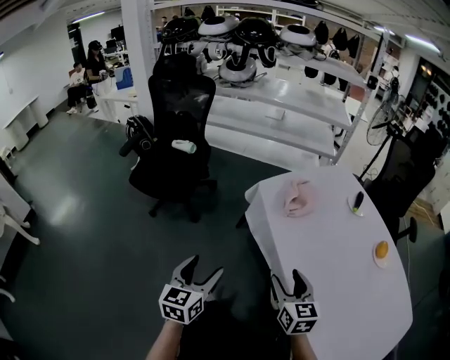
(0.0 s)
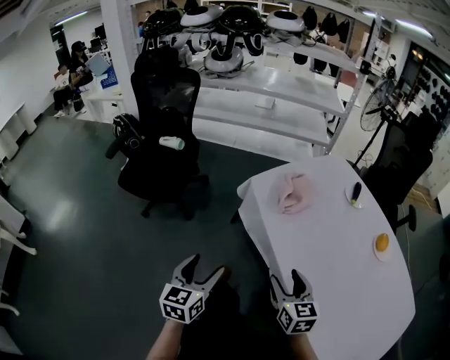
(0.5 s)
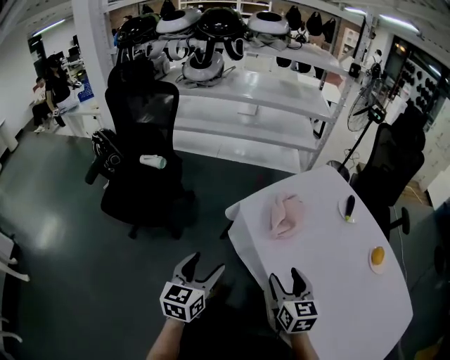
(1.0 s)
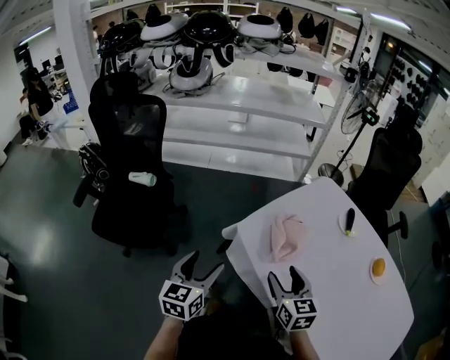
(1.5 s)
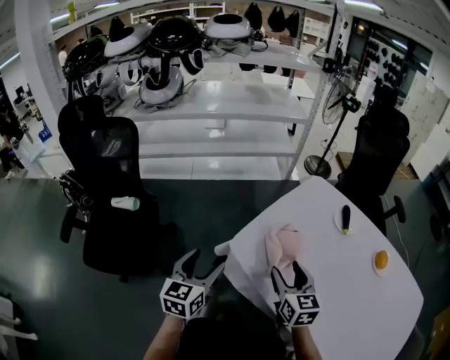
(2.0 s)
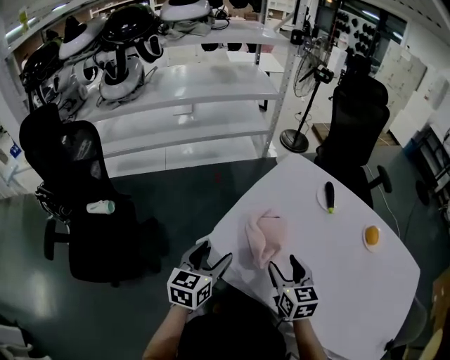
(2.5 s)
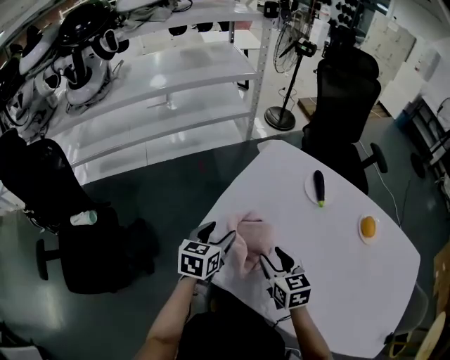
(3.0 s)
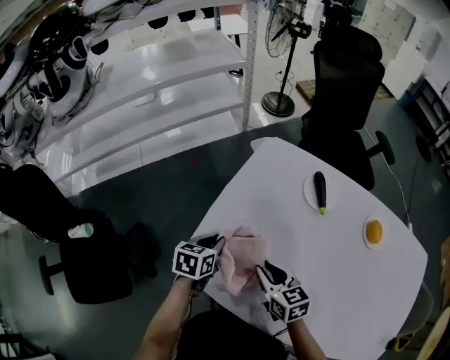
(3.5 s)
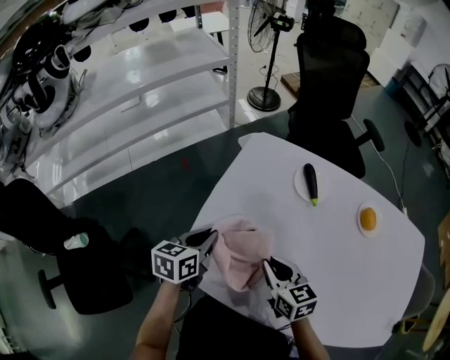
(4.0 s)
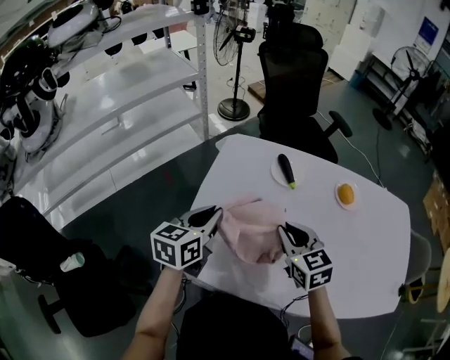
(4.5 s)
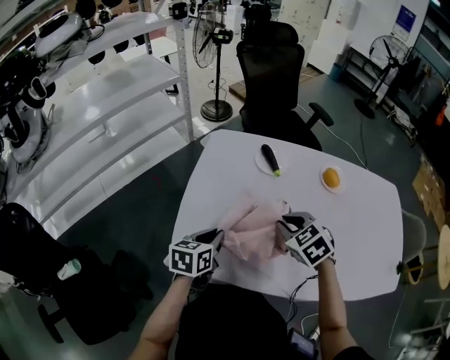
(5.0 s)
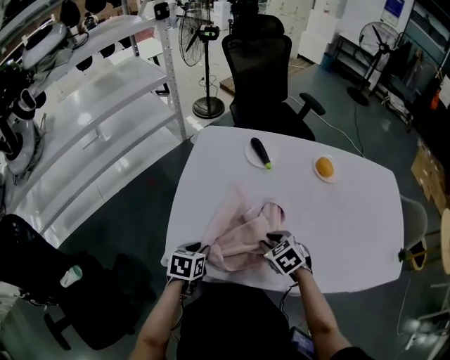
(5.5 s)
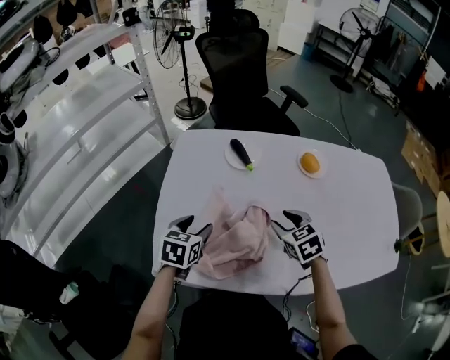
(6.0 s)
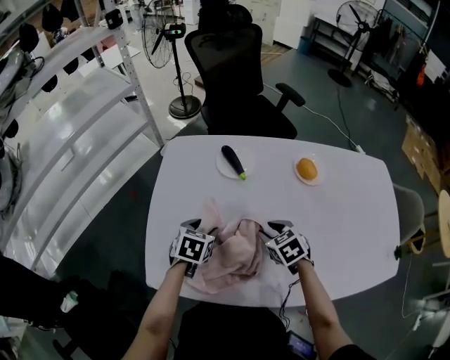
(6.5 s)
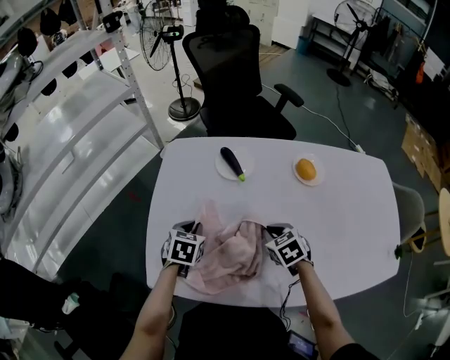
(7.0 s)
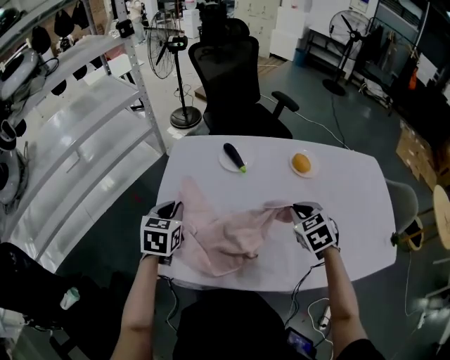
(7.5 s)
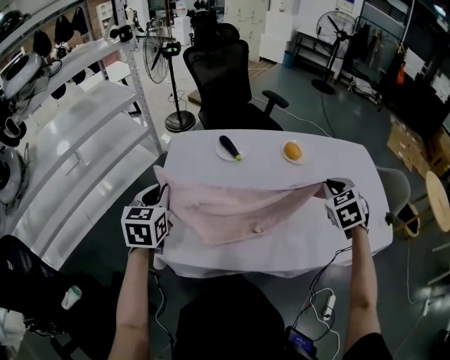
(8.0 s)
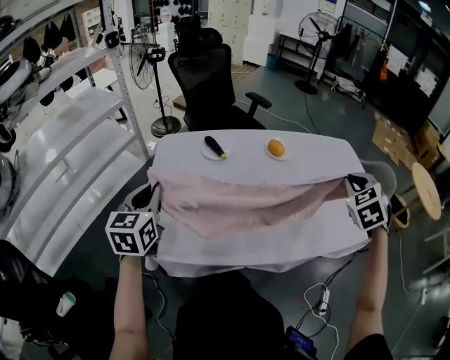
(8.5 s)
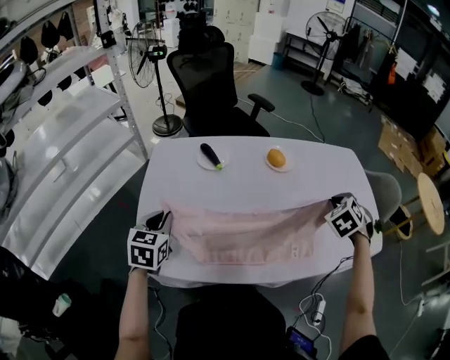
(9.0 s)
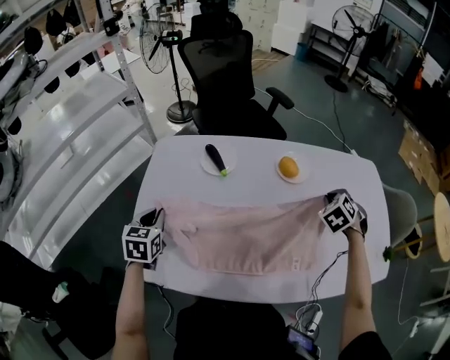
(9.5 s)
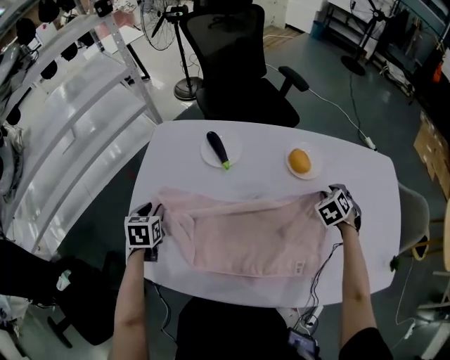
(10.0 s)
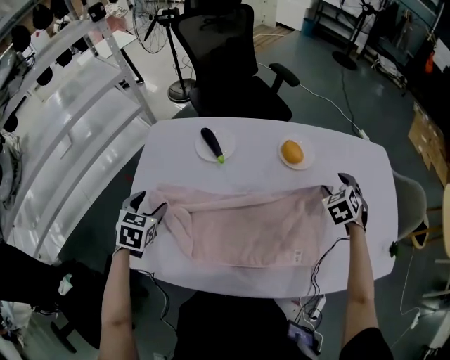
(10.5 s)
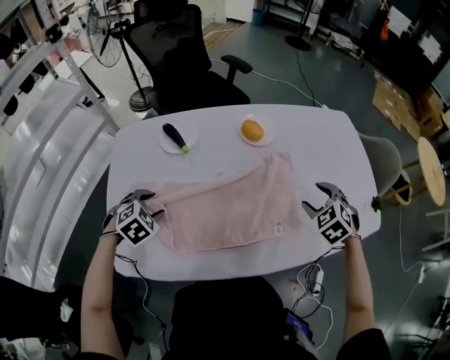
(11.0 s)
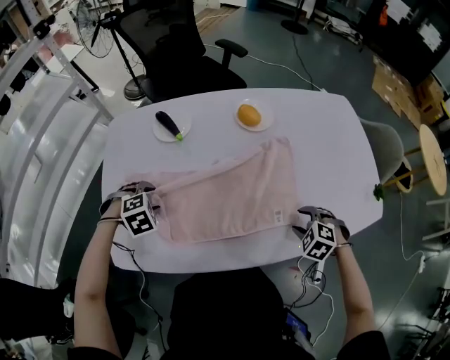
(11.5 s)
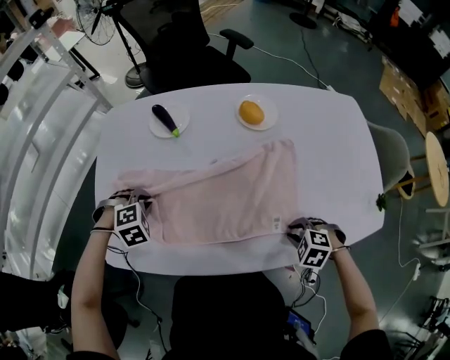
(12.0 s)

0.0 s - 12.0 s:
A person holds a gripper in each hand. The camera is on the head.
0.0 s - 2.0 s: The two grippers go approximately 35 cm forward. The right gripper swivels roughly 20 degrees, while the left gripper rotates about 20 degrees.
2.0 s - 4.0 s: The right gripper moves to the right, forward and downward, some 15 cm, and closes. Meanwhile the left gripper heads forward and to the right, covering roughly 30 cm, swivels roughly 40 degrees, and closes.
4.0 s - 6.0 s: The right gripper is displaced to the right by roughly 15 cm, swivels approximately 30 degrees, and opens its fingers. The left gripper swings up and down, some 20 cm each way, with 2 reversals, changes its angle by approximately 30 degrees, and opens its fingers.
6.0 s - 8.0 s: The right gripper shifts roughly 20 cm to the right and upward, swivels roughly 30 degrees, and closes up. Meanwhile the left gripper travels upward and to the left by some 15 cm, rotates some 20 degrees, and closes its fingers.
8.0 s - 10.0 s: The right gripper is displaced forward and downward by roughly 30 cm, and turns by roughly 20 degrees; the left gripper is displaced downward and forward by roughly 20 cm, and swivels some 30 degrees.
10.0 s - 12.0 s: The left gripper reaches some 5 cm upward, then returns, twists about 80 degrees clockwise, seen from behind, and opens, then closes once more. Meanwhile the right gripper ends up about 30 cm from where it was, rotates about 40 degrees, and opens, then closes once more.

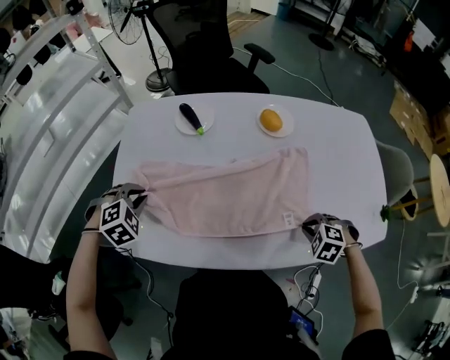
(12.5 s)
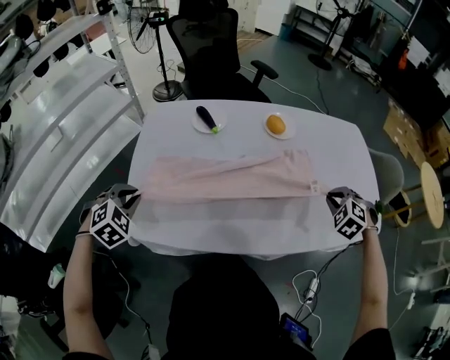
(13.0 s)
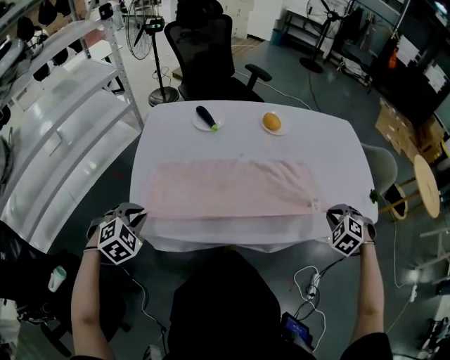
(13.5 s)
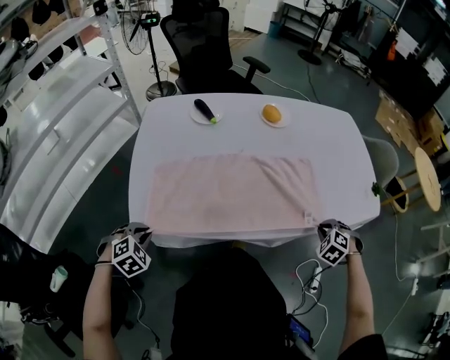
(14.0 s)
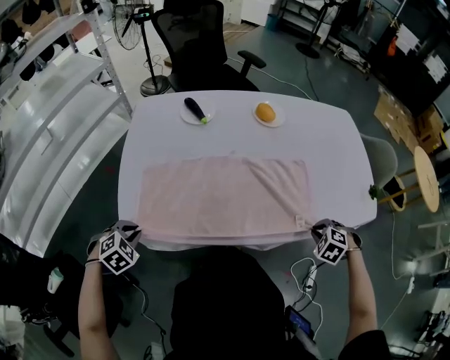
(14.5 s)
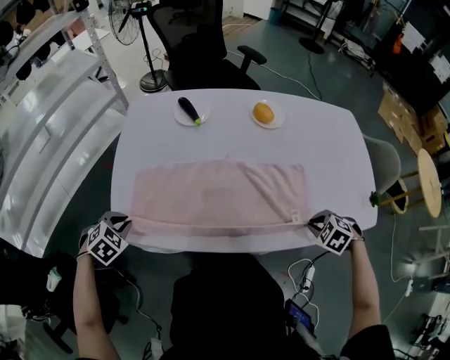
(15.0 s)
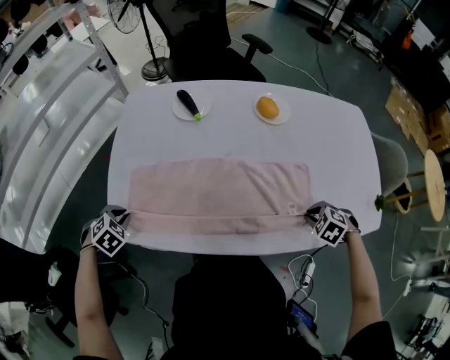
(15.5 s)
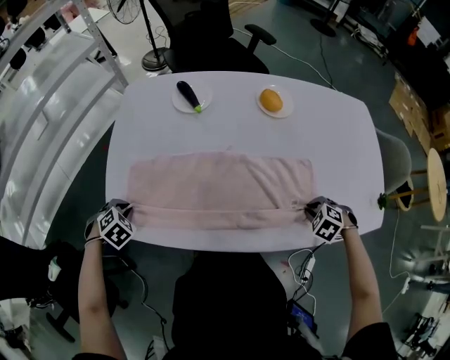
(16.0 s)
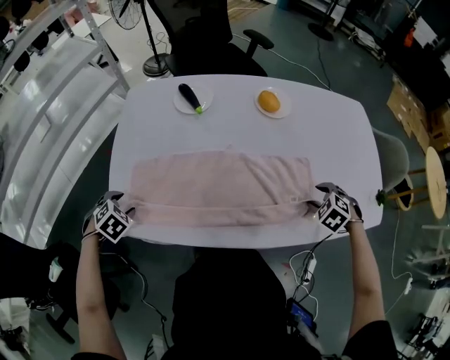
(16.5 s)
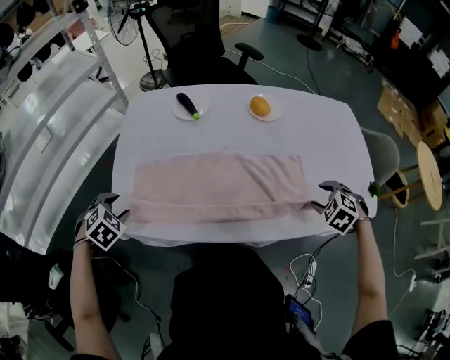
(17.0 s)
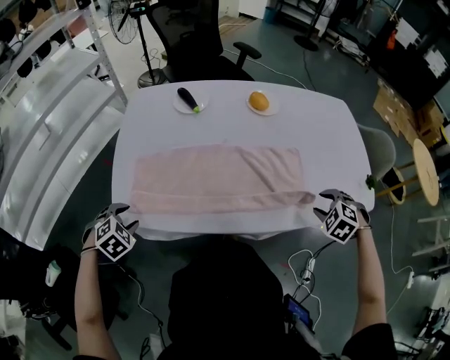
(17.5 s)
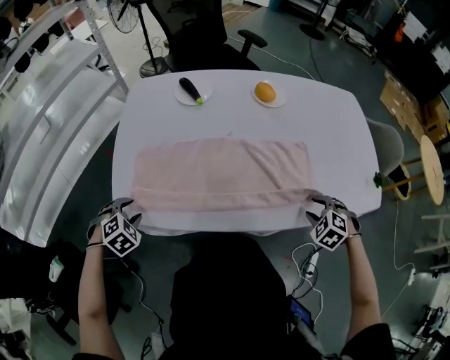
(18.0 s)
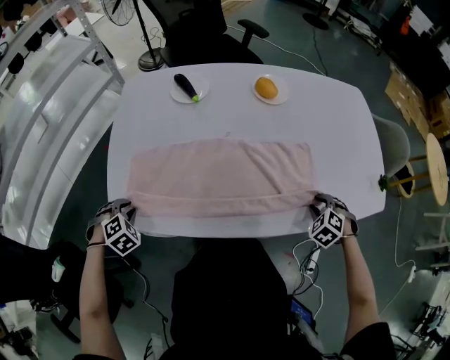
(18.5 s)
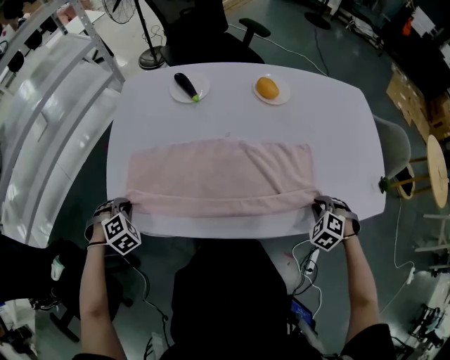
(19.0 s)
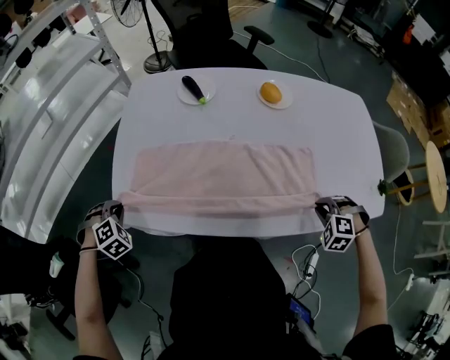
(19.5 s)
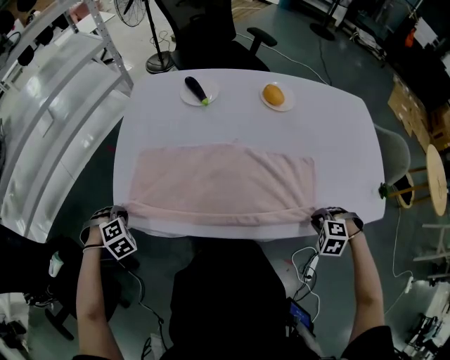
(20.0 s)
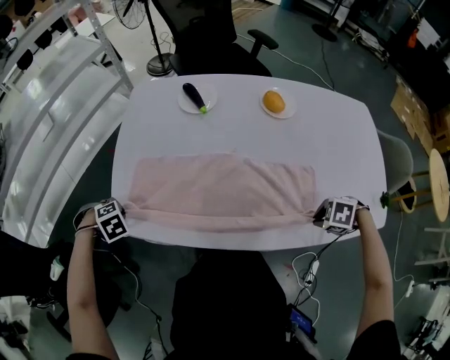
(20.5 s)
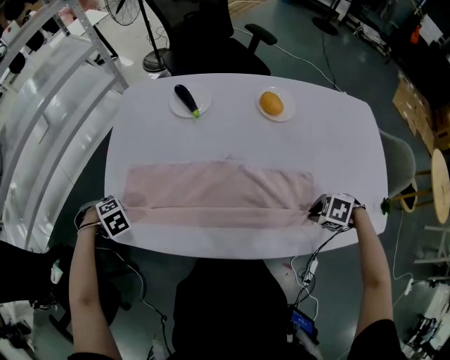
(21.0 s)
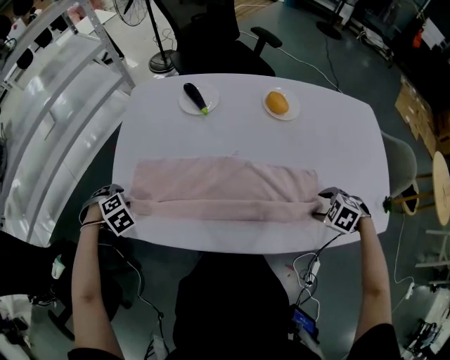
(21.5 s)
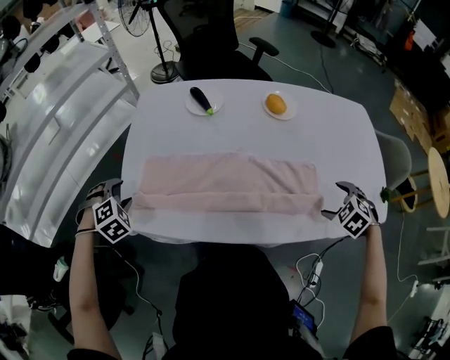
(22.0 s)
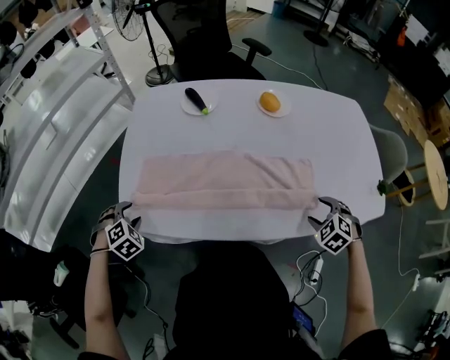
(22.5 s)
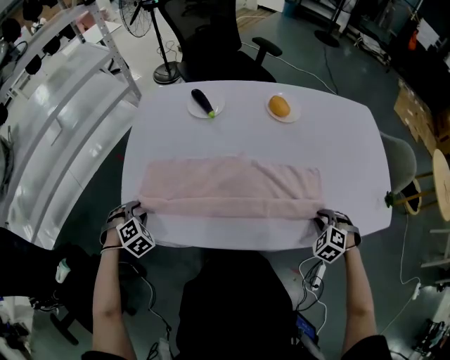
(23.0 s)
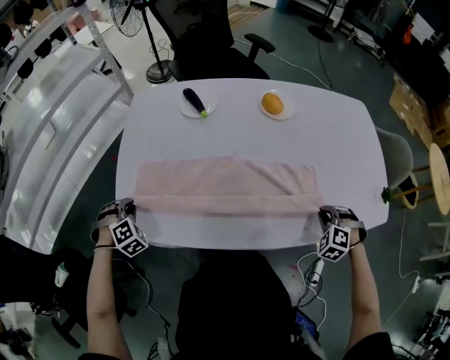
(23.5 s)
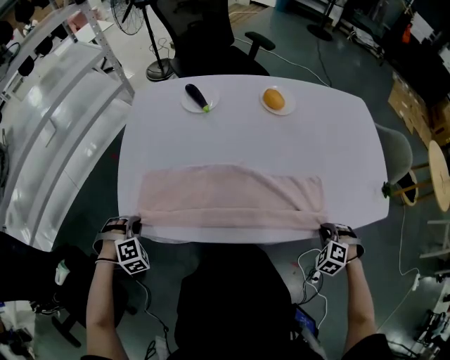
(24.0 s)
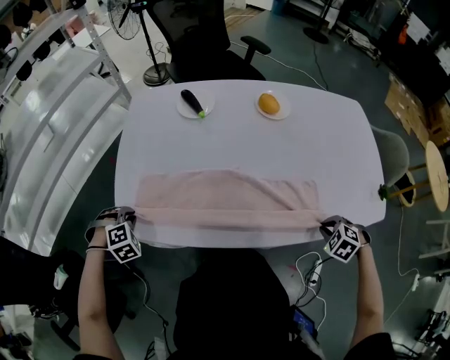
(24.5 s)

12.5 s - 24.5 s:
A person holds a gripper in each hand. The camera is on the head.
12.5 s - 14.5 s: The left gripper ends up some 20 cm from where it was. The right gripper goes upward and returns, about 10 cm each way.
14.5 s - 16.5 s: The left gripper changes place by about 10 cm, and opens up; the right gripper moves roughly 15 cm, and opens.
16.5 s - 18.5 s: The left gripper closes its fingers. The right gripper heads backward, covering about 5 cm.
18.5 s - 20.5 s: The right gripper swivels some 40 degrees, while the left gripper changes its angle by approximately 20 degrees.
20.5 s - 22.5 s: The left gripper travels upward and back again, approximately 5 cm each way, changes its angle by roughly 30 degrees, and opens its fingers. The right gripper rotates some 40 degrees, and opens up.
22.5 s - 24.5 s: The left gripper closes up, while the right gripper shifts by some 5 cm, and closes.

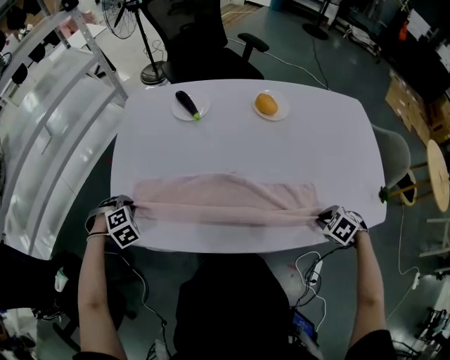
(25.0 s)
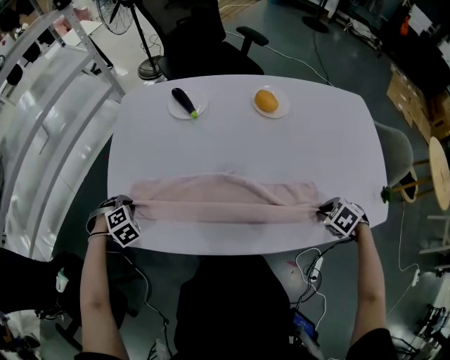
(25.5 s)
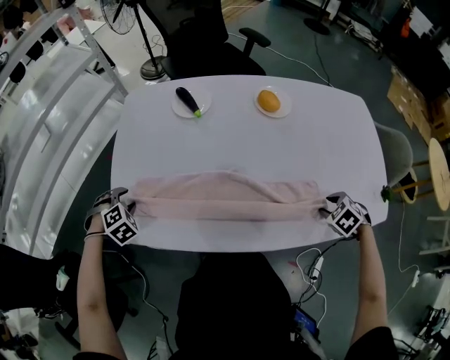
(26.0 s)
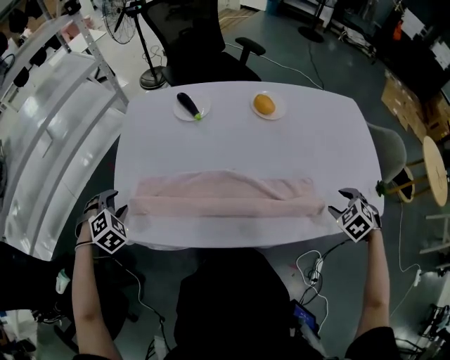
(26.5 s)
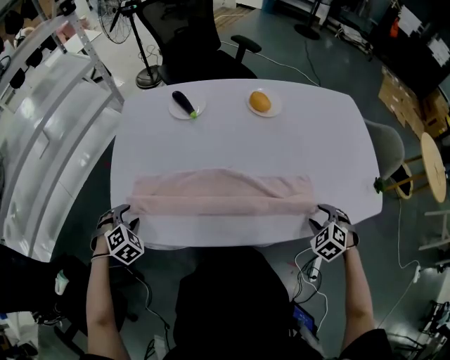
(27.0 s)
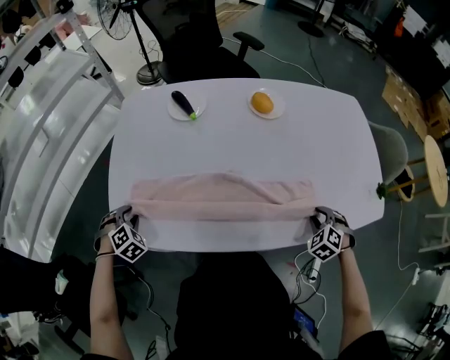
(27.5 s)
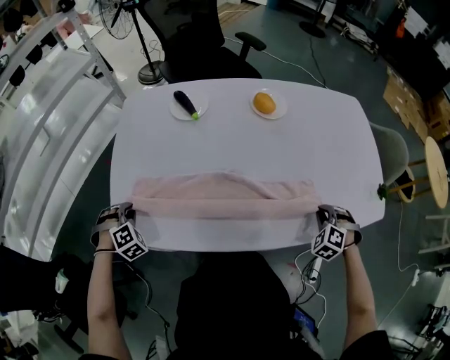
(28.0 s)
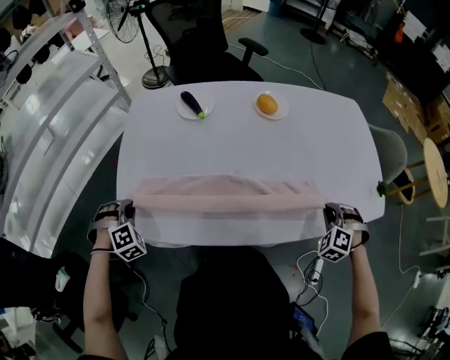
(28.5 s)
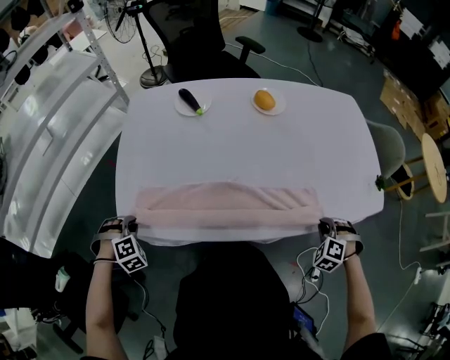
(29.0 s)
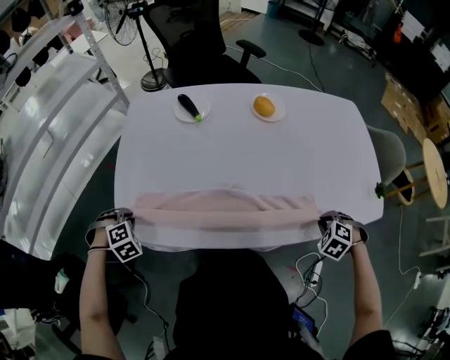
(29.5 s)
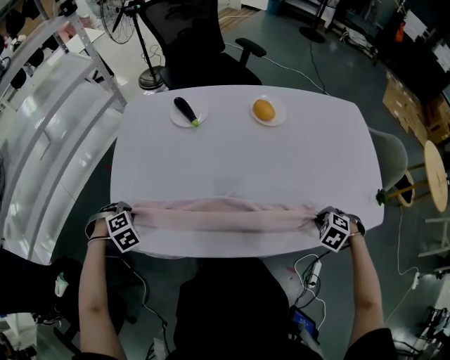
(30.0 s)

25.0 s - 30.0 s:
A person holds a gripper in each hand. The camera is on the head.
25.0 s - 27.5 s: The right gripper reaches approximately 10 cm upward, then returns, and changes its angle by about 30 degrees. Meanwhile the left gripper reaches some 5 cm upward, then returns.
27.5 s - 30.0 s: The right gripper turns by some 20 degrees.
